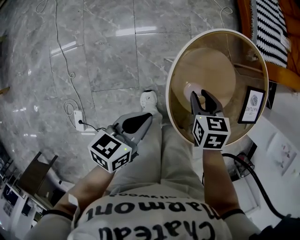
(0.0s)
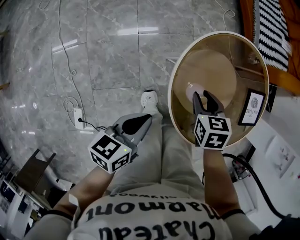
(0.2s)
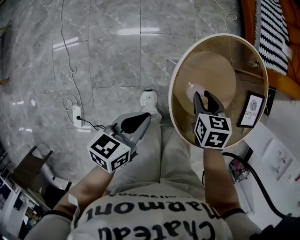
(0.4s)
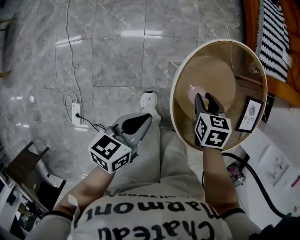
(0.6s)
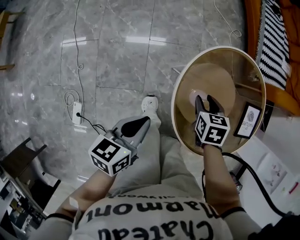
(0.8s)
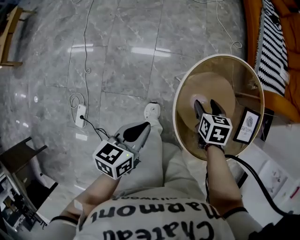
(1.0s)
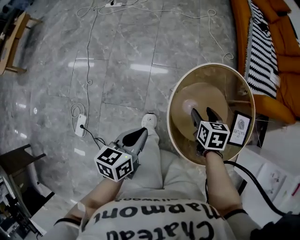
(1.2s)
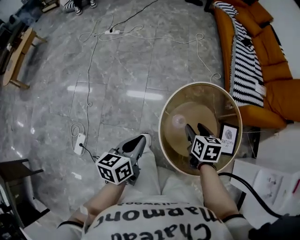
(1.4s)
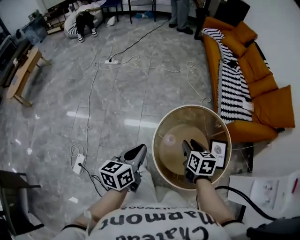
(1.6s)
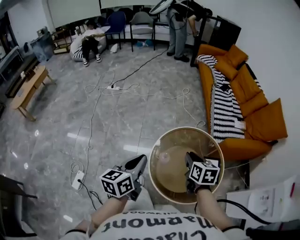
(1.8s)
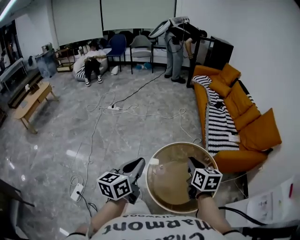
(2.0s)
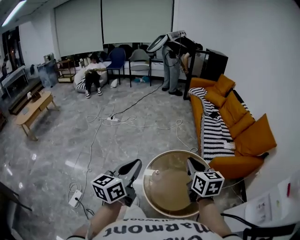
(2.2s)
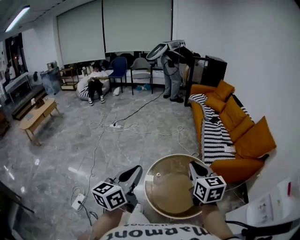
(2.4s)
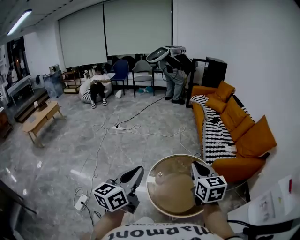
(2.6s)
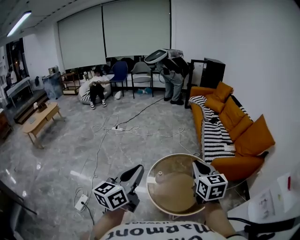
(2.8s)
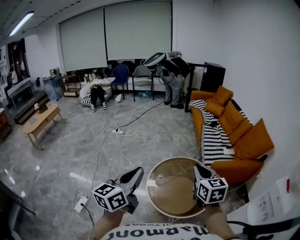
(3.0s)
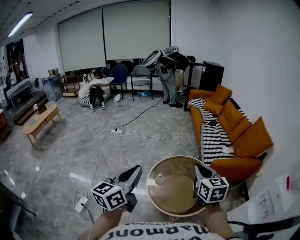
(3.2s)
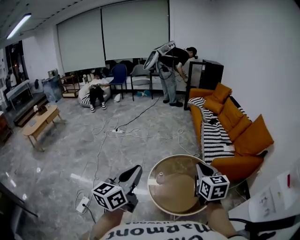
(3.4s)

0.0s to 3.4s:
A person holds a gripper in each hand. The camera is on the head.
0.0s to 1.6s: Both grippers travel together upward, some 20 cm. The left gripper rotates about 30 degrees.
1.6s to 3.4s: The left gripper heads upward and backward, covering roughly 30 cm, and changes its angle by approximately 30 degrees, while the right gripper heads upward, backward and to the right, covering approximately 35 cm, turns by some 30 degrees, and closes its fingers.

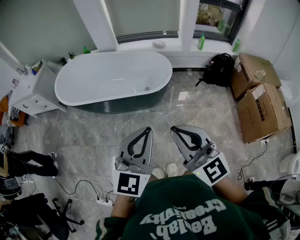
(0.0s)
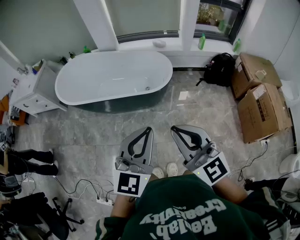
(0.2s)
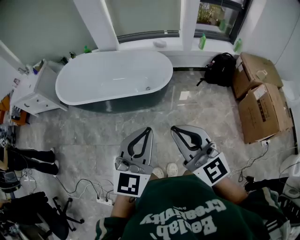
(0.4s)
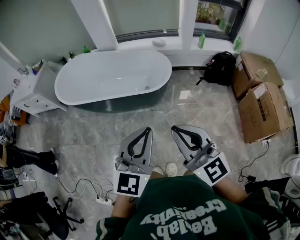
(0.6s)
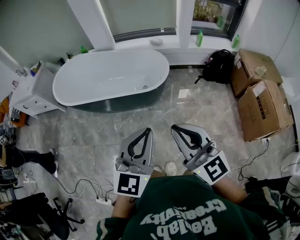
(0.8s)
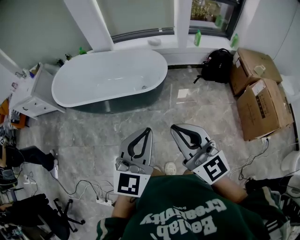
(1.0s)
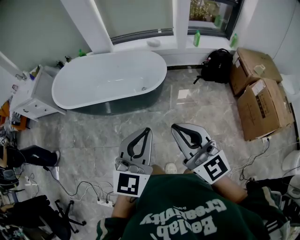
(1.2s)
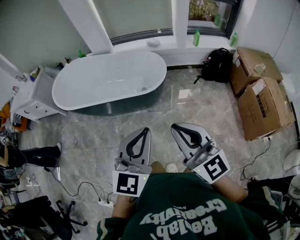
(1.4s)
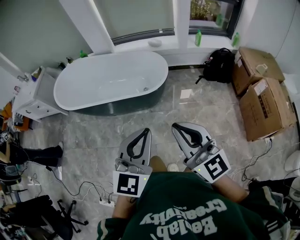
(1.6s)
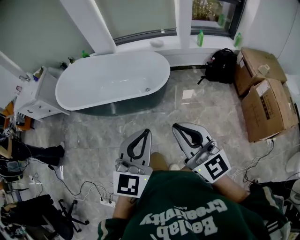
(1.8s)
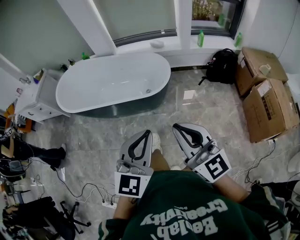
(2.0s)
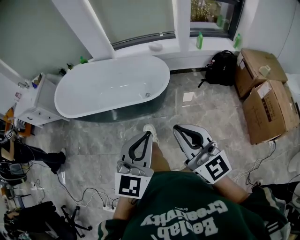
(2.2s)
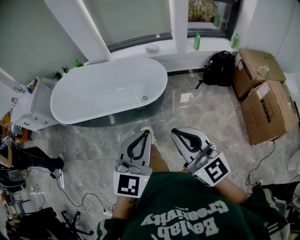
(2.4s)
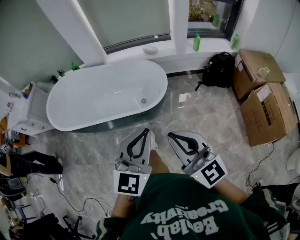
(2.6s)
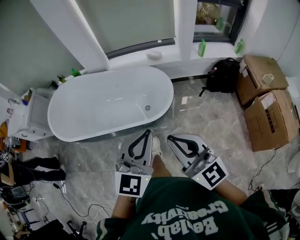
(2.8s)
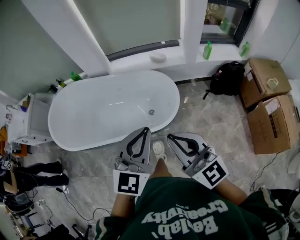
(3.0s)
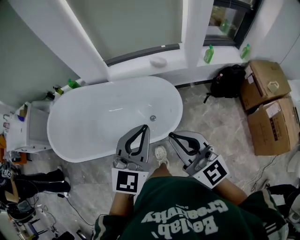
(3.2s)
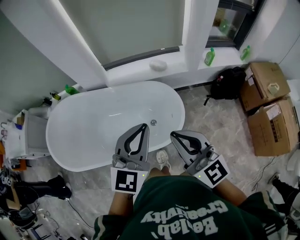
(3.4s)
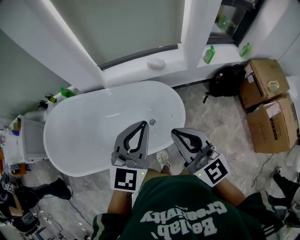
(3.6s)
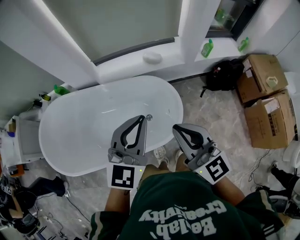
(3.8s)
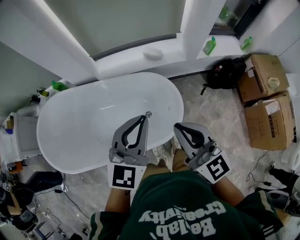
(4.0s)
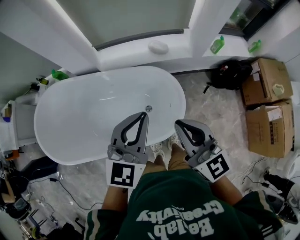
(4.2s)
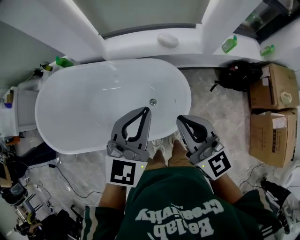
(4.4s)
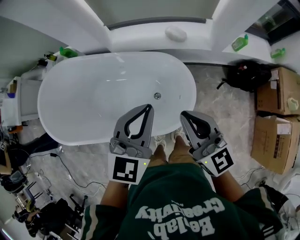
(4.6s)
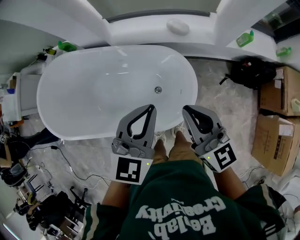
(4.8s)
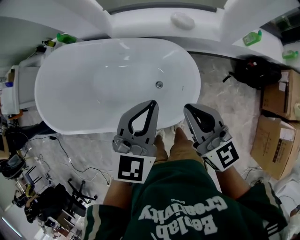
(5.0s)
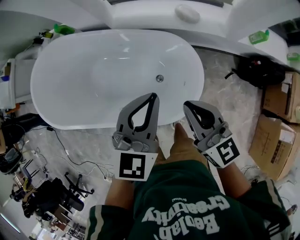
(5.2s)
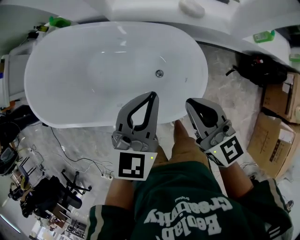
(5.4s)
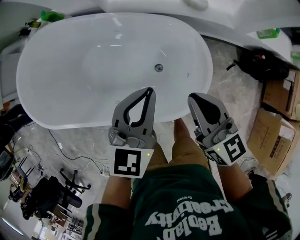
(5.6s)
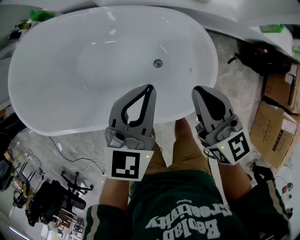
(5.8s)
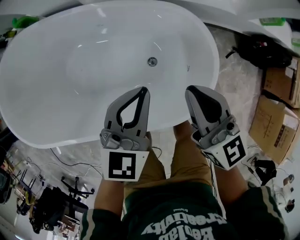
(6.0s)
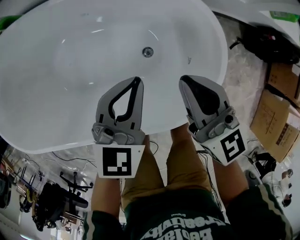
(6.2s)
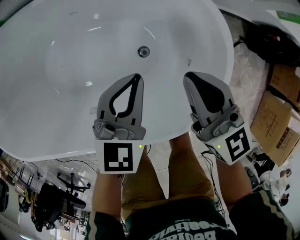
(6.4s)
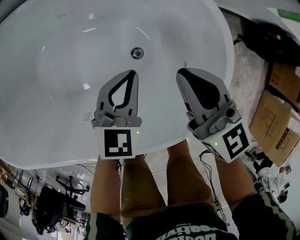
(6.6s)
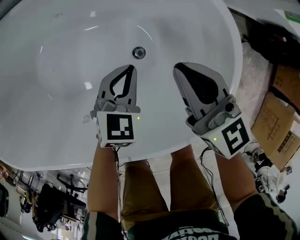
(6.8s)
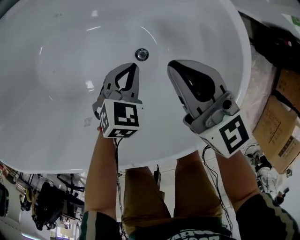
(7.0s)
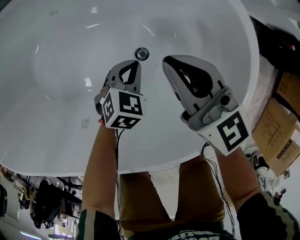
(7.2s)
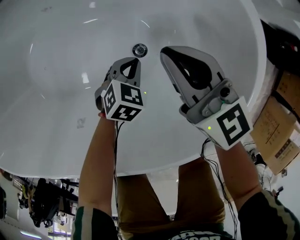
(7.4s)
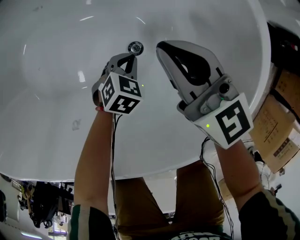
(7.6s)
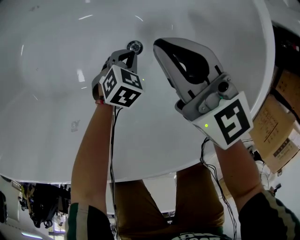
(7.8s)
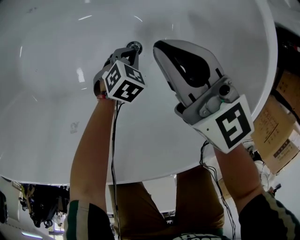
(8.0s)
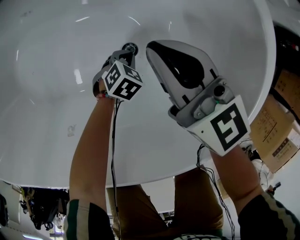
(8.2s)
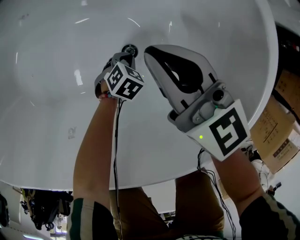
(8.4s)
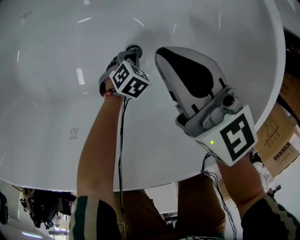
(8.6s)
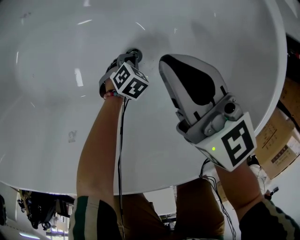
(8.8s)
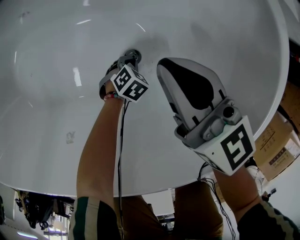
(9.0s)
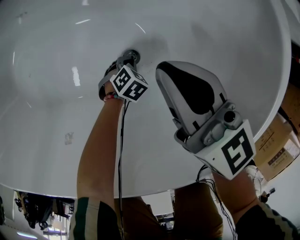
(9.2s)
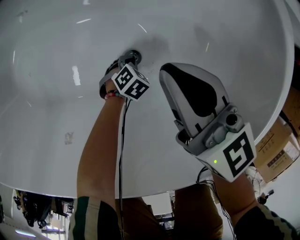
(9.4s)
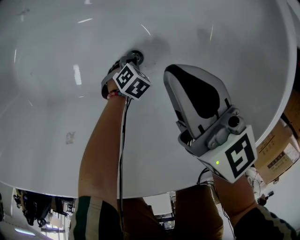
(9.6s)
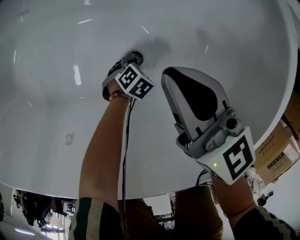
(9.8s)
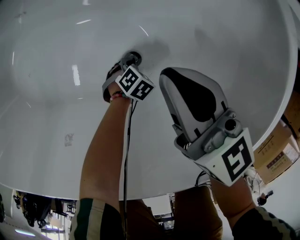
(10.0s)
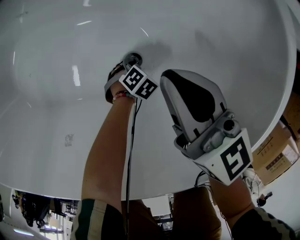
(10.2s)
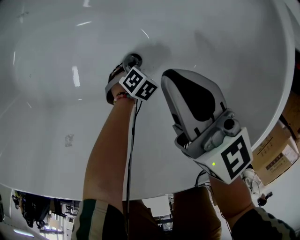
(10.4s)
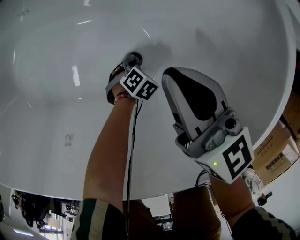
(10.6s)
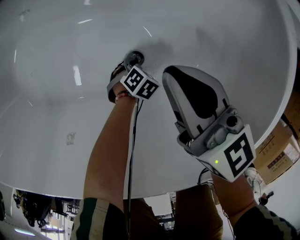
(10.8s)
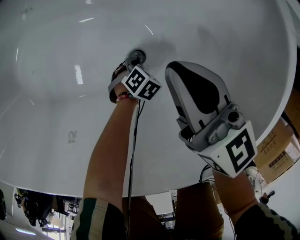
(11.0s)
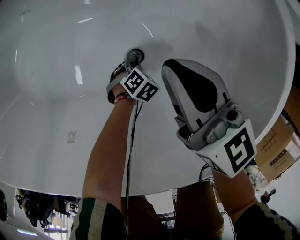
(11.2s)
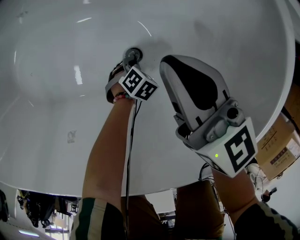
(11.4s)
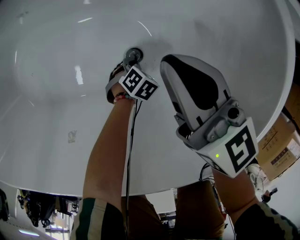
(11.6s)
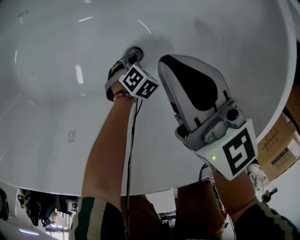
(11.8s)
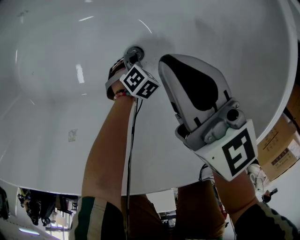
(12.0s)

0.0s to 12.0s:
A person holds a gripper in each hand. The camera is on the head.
0.0s to 1.6s: Both grippers travel together to the right, some 5 cm.
1.6s to 3.0s: Both grippers move forward, about 35 cm.
3.0s to 4.4s: The grippers both shift forward by roughly 30 cm.
4.4s to 6.0s: The grippers both shift downward by approximately 30 cm.
6.0s to 7.6s: The left gripper moves downward, some 50 cm, and points its fingers approximately 40 degrees further downward; the right gripper heads downward, covering some 30 cm.
7.6s to 9.0s: The left gripper heads downward, covering some 15 cm.
9.0s to 12.0s: There are only small adjustments of the grippers.

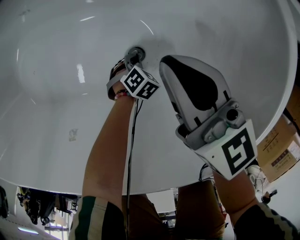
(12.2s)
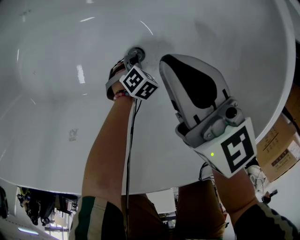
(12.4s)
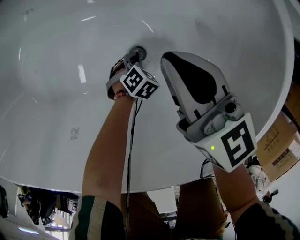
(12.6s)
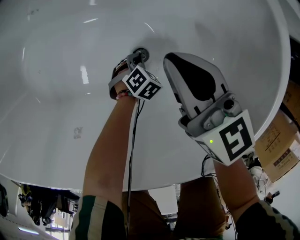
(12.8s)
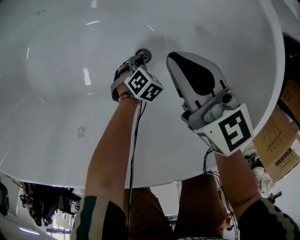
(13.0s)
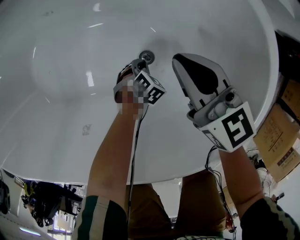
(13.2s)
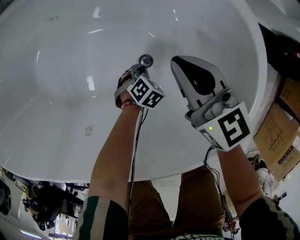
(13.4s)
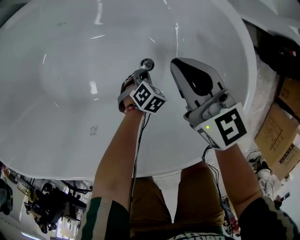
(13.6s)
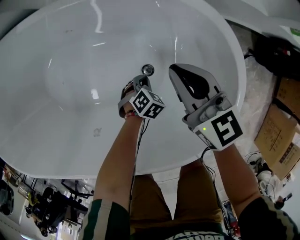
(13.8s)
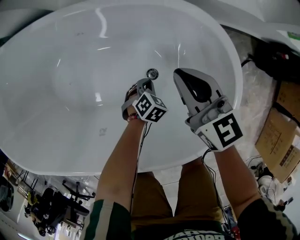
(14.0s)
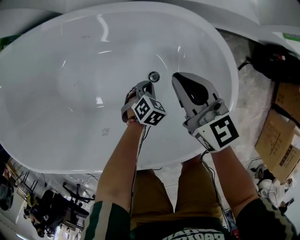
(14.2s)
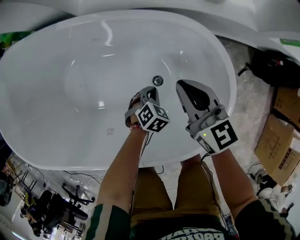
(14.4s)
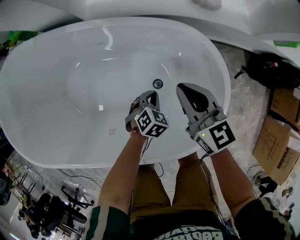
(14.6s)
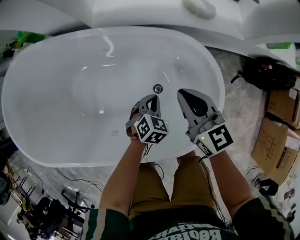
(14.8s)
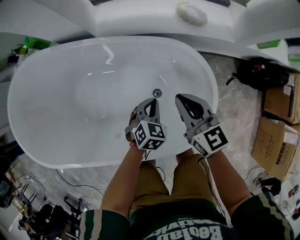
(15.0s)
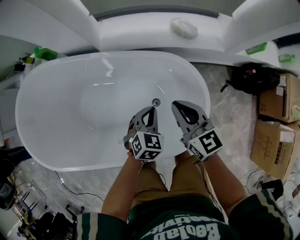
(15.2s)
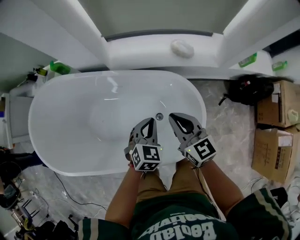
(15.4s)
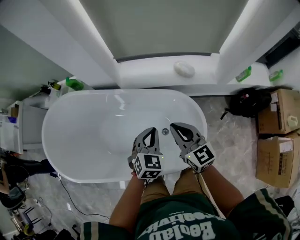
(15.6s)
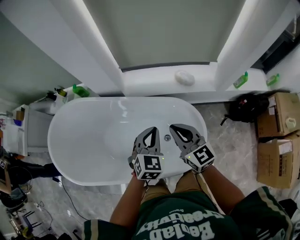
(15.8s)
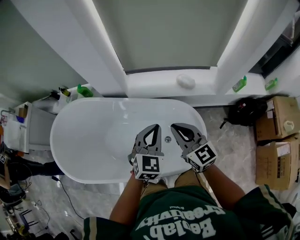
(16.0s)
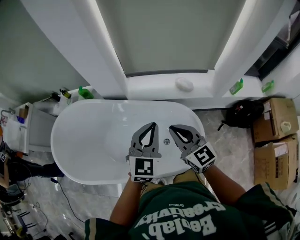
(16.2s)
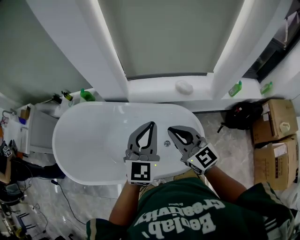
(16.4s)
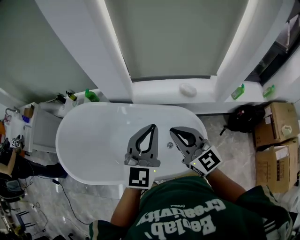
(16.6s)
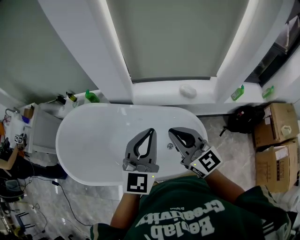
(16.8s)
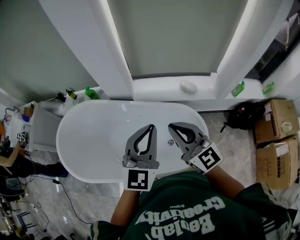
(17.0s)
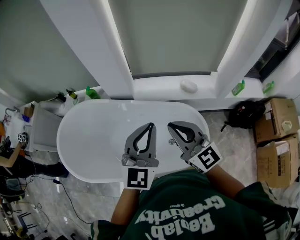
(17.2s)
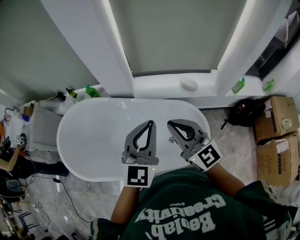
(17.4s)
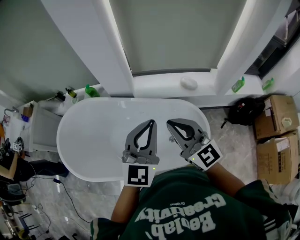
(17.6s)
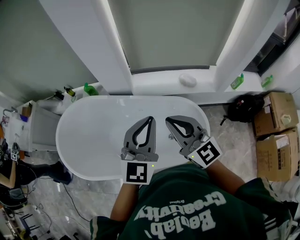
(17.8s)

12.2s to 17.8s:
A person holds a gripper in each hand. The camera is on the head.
12.2s to 13.6s: The left gripper travels upward by roughly 10 cm.
13.6s to 15.0s: The left gripper moves upward, roughly 30 cm, and turns by roughly 30 degrees. Meanwhile the right gripper heads upward, covering roughly 20 cm.
15.0s to 16.4s: The right gripper travels upward by about 35 cm, and rotates approximately 20 degrees. Meanwhile the left gripper moves upward, roughly 50 cm, and angles its fingers upward, by roughly 50 degrees.
16.4s to 17.8s: The right gripper moves to the left and upward, approximately 10 cm, while the left gripper moves to the left, roughly 5 cm.

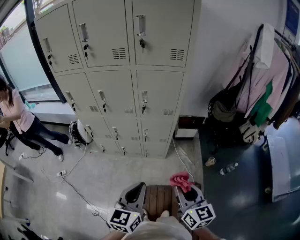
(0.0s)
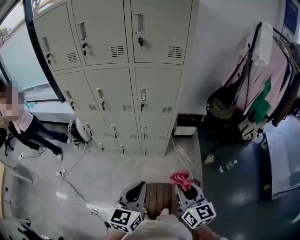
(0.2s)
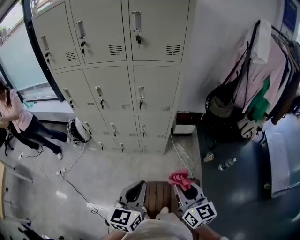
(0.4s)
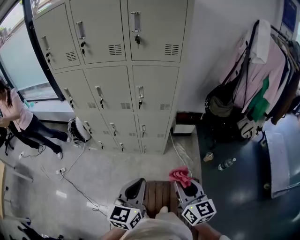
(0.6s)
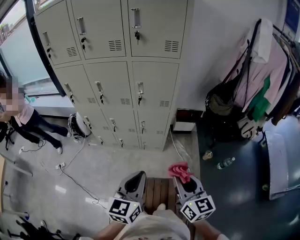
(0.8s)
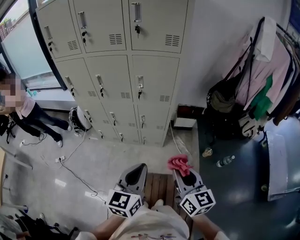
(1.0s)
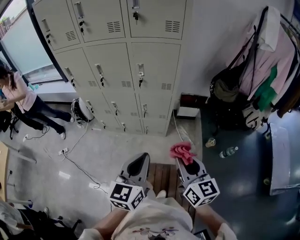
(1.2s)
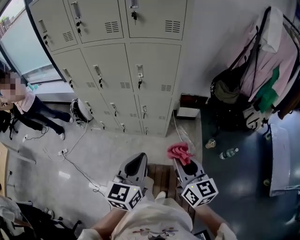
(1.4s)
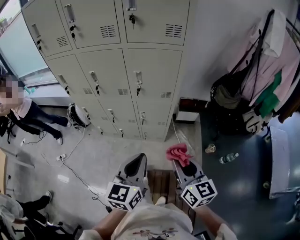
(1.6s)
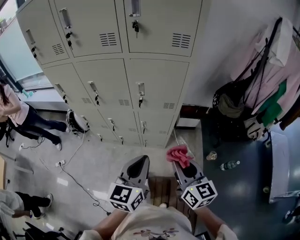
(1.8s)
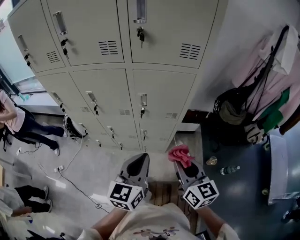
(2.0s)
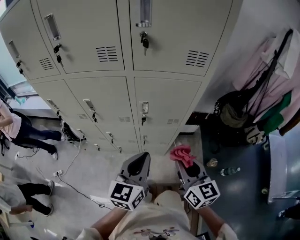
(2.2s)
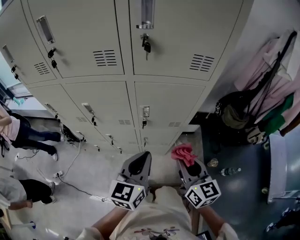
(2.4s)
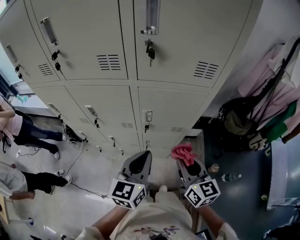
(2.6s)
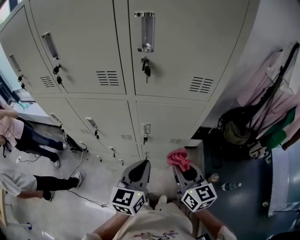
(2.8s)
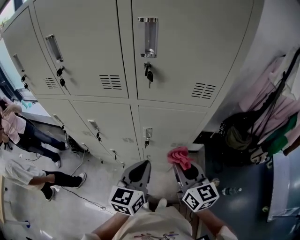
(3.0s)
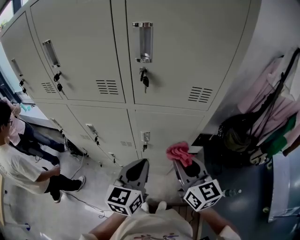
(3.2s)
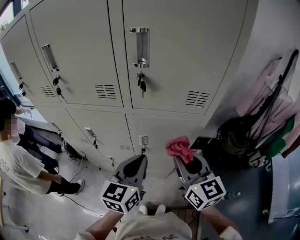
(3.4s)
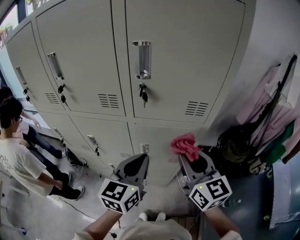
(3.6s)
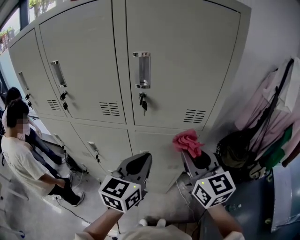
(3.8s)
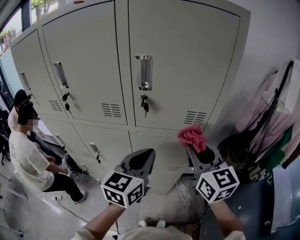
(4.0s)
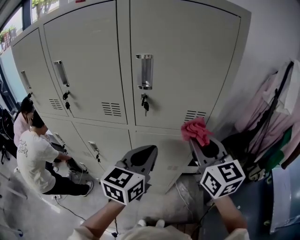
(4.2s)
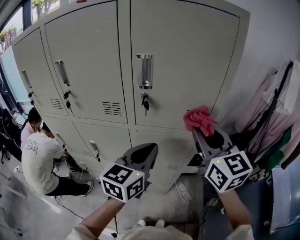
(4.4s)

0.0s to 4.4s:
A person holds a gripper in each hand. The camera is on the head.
0.0s to 1.4s: The left gripper moves roughly 5 cm.
1.4s to 3.0s: Both grippers move forward, approximately 20 cm.
3.0s to 4.4s: The grippers both shift upward and forward by approximately 20 cm.
